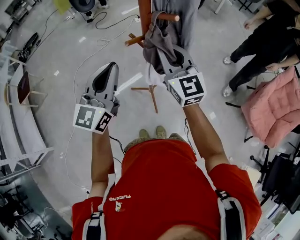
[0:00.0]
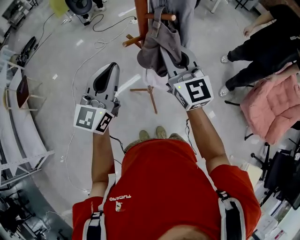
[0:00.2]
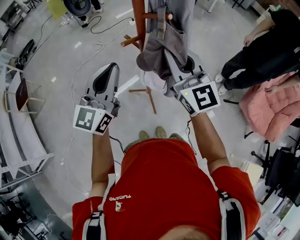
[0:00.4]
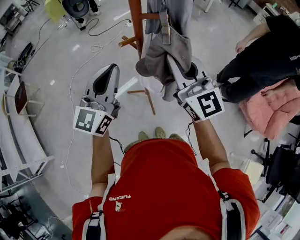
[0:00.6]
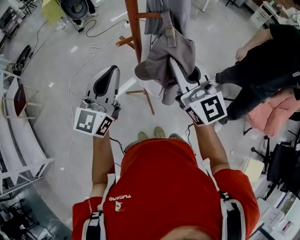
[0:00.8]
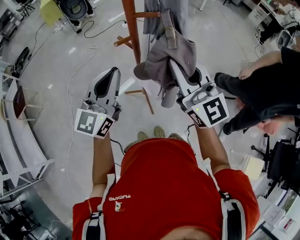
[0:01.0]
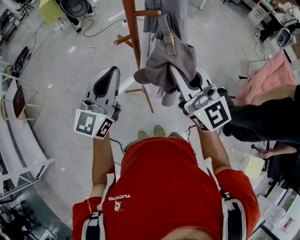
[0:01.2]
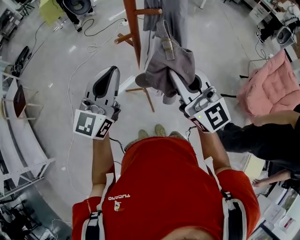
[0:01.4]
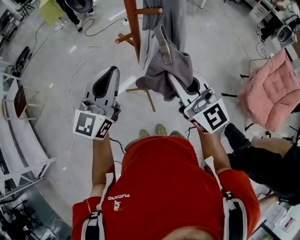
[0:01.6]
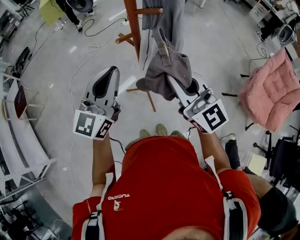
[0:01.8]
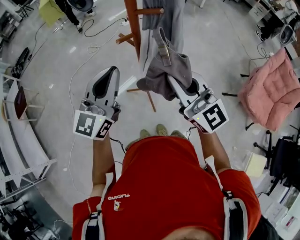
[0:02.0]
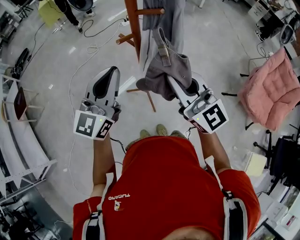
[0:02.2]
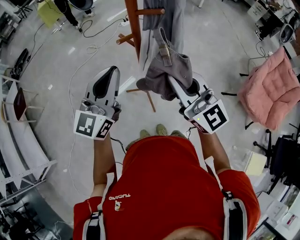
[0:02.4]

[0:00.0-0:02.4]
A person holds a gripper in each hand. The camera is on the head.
0:00.0 to 0:01.2: The right gripper is displaced backward and upward by some 15 cm.
0:01.2 to 0:02.4: There are only small adjustments of the grippers.

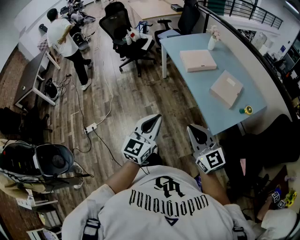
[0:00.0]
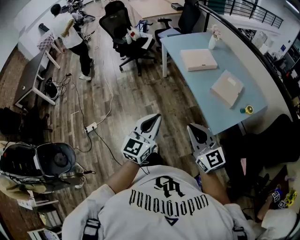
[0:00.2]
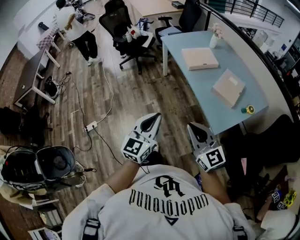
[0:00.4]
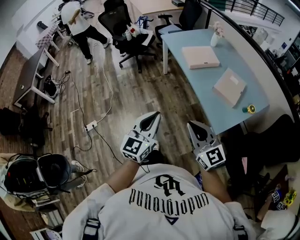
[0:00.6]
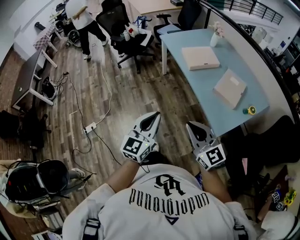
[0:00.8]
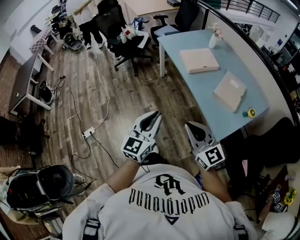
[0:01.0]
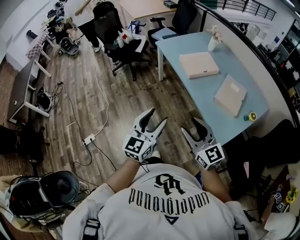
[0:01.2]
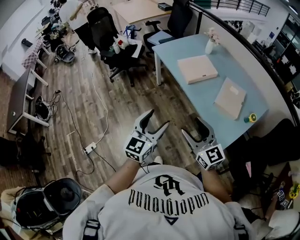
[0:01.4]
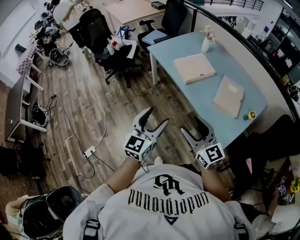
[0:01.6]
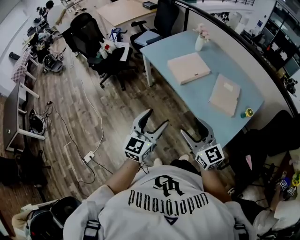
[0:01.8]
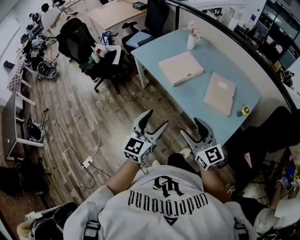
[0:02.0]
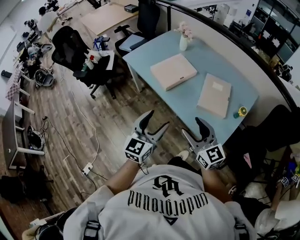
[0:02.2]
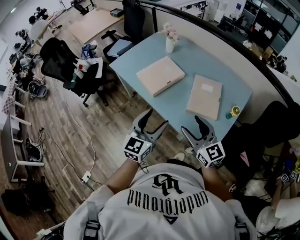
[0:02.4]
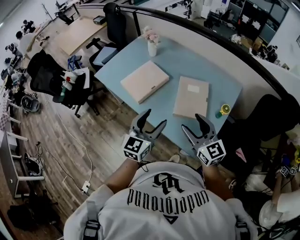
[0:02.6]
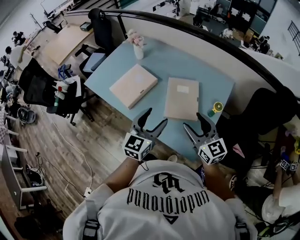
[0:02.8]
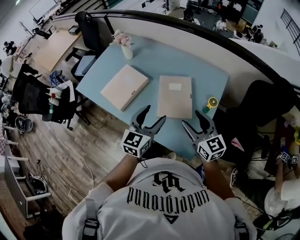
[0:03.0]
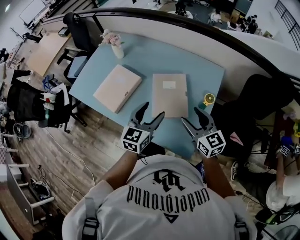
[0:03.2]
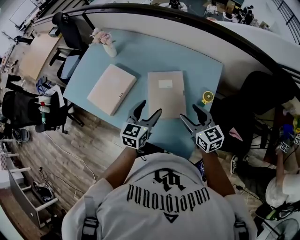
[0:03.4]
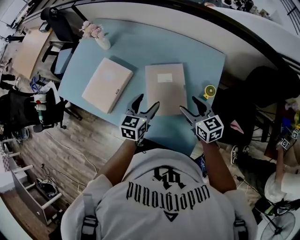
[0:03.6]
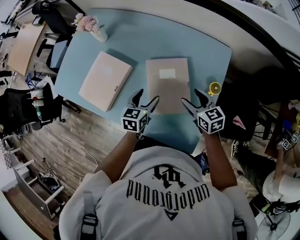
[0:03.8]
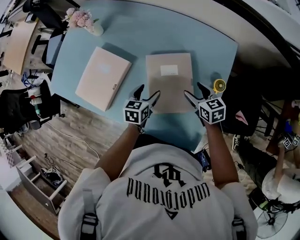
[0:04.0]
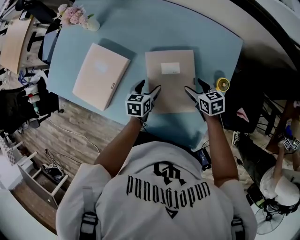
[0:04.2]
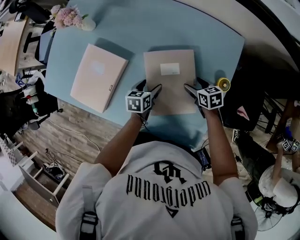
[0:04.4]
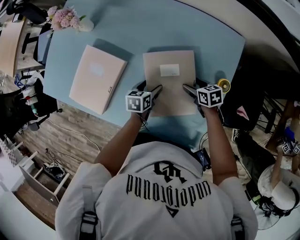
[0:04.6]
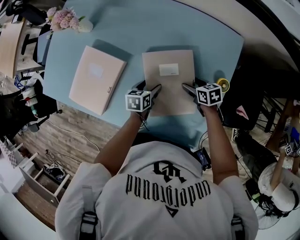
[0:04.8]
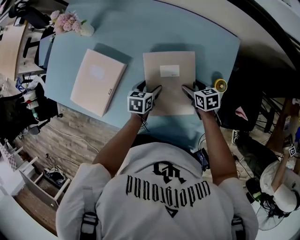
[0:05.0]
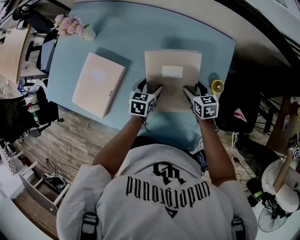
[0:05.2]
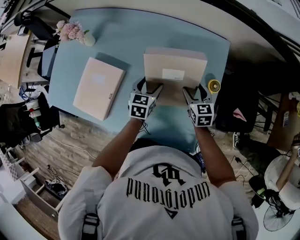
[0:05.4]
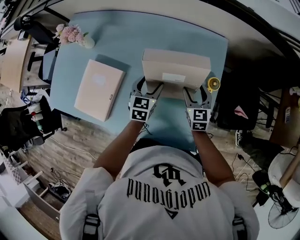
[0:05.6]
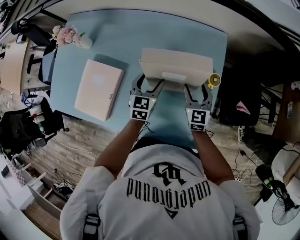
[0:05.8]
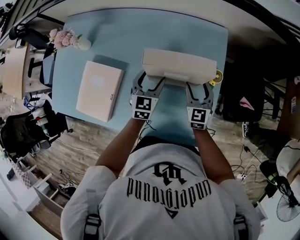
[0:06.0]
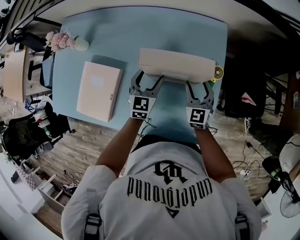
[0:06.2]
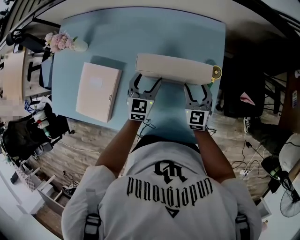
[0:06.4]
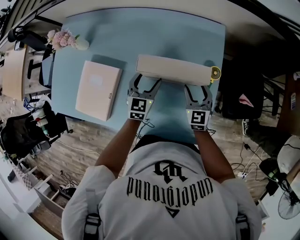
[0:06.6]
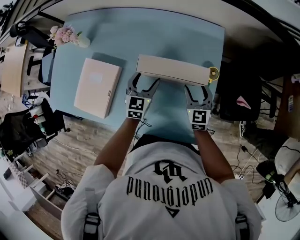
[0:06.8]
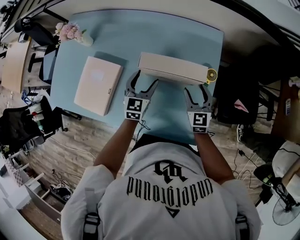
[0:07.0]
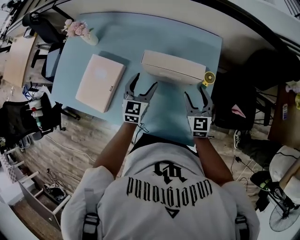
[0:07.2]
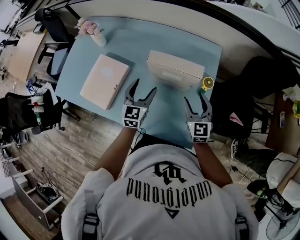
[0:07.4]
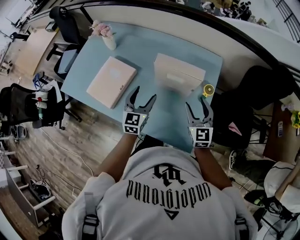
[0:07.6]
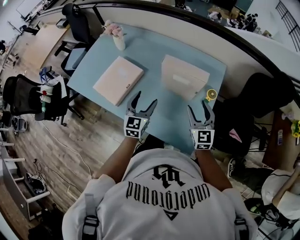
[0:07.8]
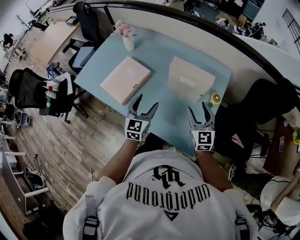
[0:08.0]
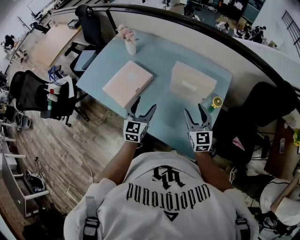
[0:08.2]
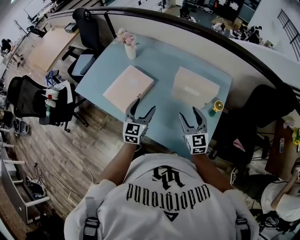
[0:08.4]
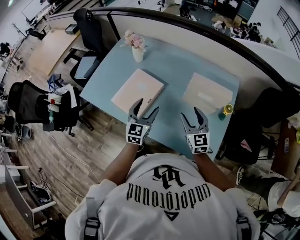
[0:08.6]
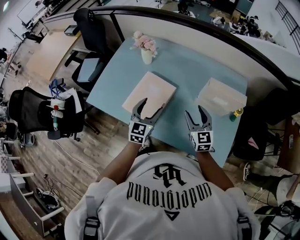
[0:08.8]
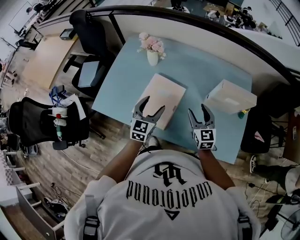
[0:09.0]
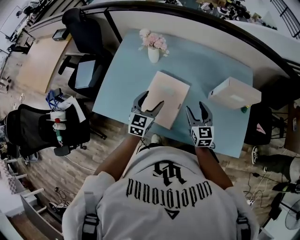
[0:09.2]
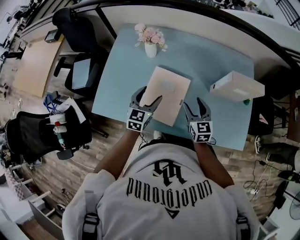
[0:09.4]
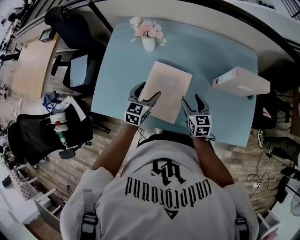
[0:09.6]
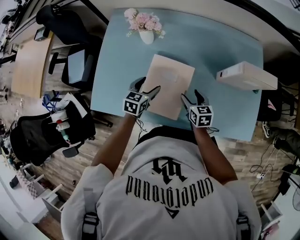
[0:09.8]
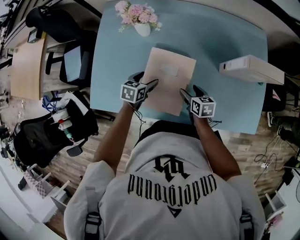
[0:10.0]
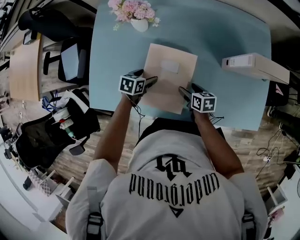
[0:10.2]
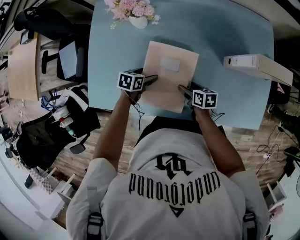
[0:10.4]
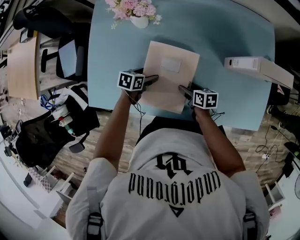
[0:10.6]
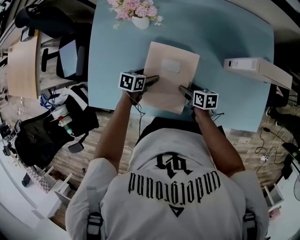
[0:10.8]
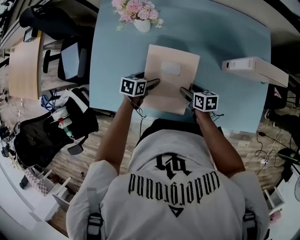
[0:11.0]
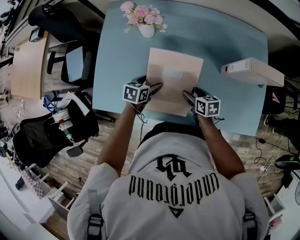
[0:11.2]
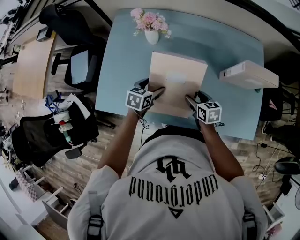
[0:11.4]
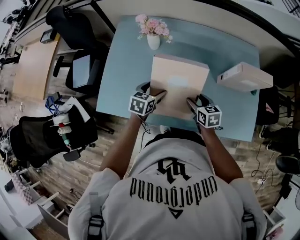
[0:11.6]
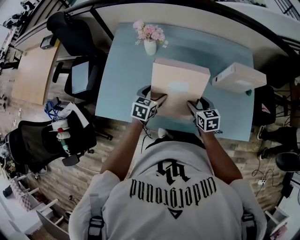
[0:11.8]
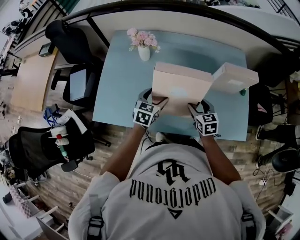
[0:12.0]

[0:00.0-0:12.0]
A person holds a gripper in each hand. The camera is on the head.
0:00.0 to 0:01.6: Both grippers move forward, approximately 25 cm. The left gripper opens up; the right gripper opens.
0:01.6 to 0:03.0: The pair of grippers is taken about 40 cm. The left gripper changes its angle by some 30 degrees. Meanwhile the right gripper rotates approximately 30 degrees.
0:03.0 to 0:04.4: The grippers both shift downward and forward by approximately 40 cm. The left gripper points its fingers about 40 degrees further downward. The right gripper angles its fingers downward, by approximately 40 degrees.
0:04.4 to 0:06.0: The right gripper heads upward, covering about 10 cm, and turns by some 50 degrees; the left gripper travels upward and to the right by roughly 15 cm, and turns by approximately 40 degrees.
0:06.0 to 0:07.6: The left gripper is displaced backward and upward by roughly 20 cm. The right gripper travels upward and backward by approximately 20 cm.
0:07.6 to 0:09.0: The two grippers go roughly 30 cm to the left.
0:09.0 to 0:10.4: The right gripper goes about 30 cm downward and to the left, and turns by roughly 60 degrees, while the left gripper travels downward by roughly 25 cm, and angles its fingers downward, by some 40 degrees.
0:10.4 to 0:12.0: The two grippers go approximately 20 cm upward. The left gripper swivels approximately 40 degrees. The right gripper turns by some 40 degrees.

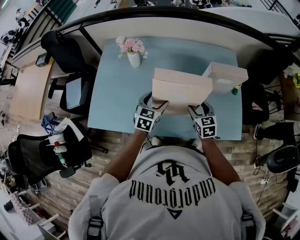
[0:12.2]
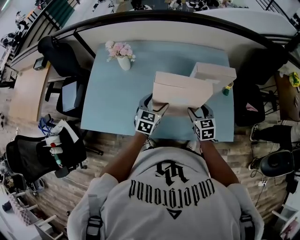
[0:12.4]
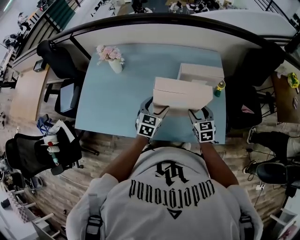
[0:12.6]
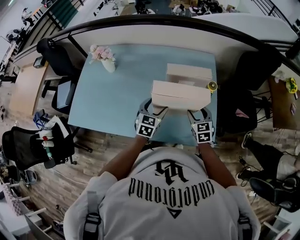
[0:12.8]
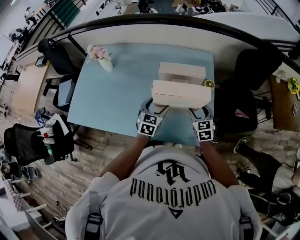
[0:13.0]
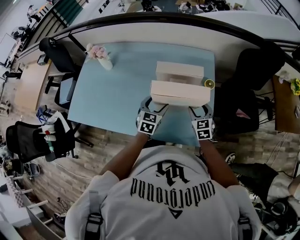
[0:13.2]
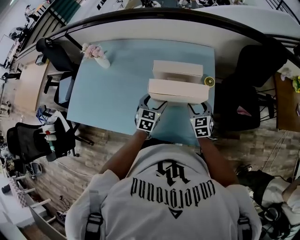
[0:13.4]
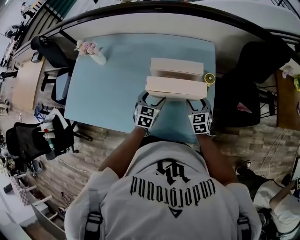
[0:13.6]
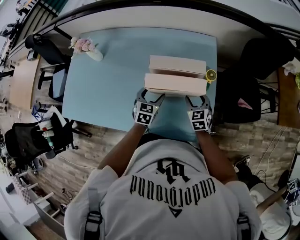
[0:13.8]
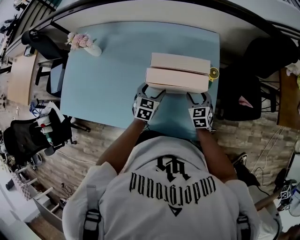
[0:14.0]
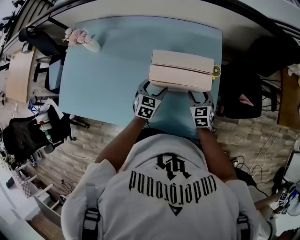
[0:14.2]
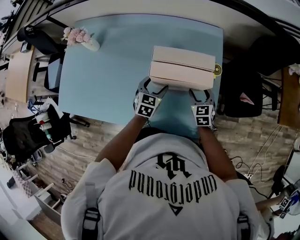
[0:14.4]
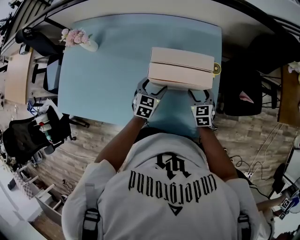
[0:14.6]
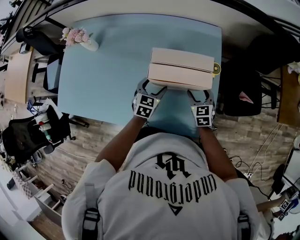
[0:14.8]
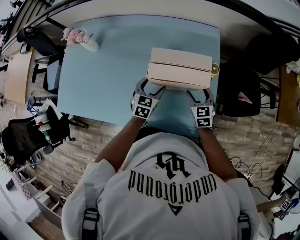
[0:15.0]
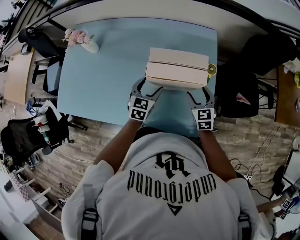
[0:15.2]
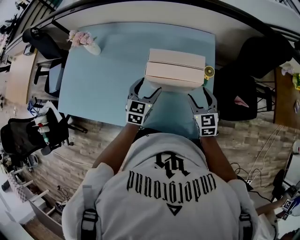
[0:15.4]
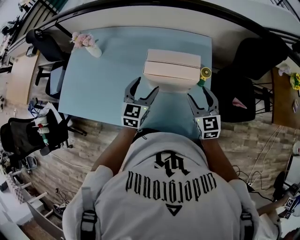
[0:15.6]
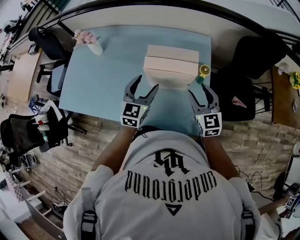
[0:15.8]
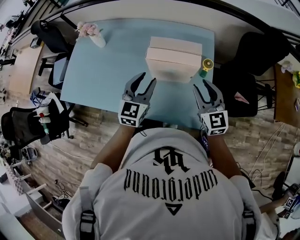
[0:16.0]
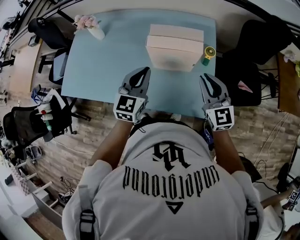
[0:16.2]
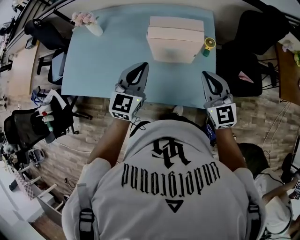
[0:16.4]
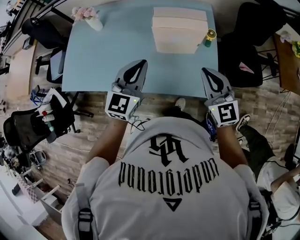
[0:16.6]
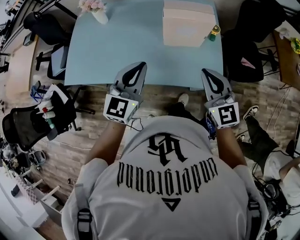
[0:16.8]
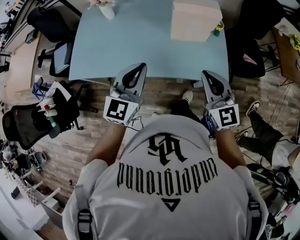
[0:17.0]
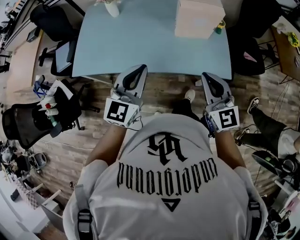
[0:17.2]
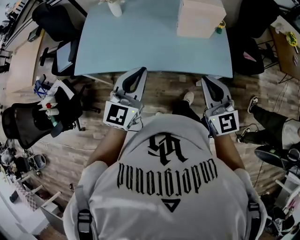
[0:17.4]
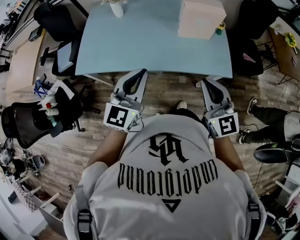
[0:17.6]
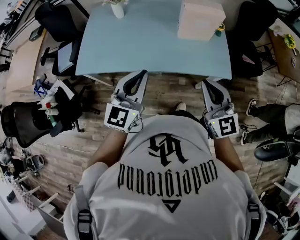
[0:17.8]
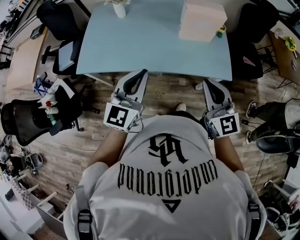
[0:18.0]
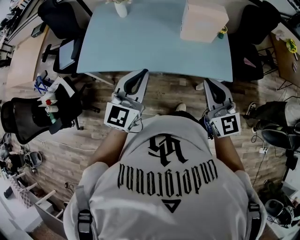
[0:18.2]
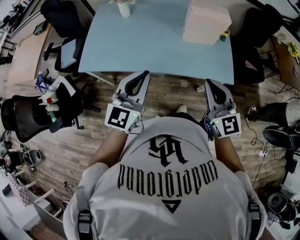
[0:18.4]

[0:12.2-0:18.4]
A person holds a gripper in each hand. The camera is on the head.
0:12.2 to 0:13.8: The grippers both shift to the right by approximately 30 cm.
0:13.8 to 0:15.4: The two grippers go about 5 cm upward.
0:15.4 to 0:16.8: The two grippers go some 30 cm backward, upward and to the left. The left gripper rotates roughly 20 degrees, and closes its fingers; the right gripper closes up.
0:16.8 to 0:18.4: The grippers both shift backward and to the left by approximately 20 cm.

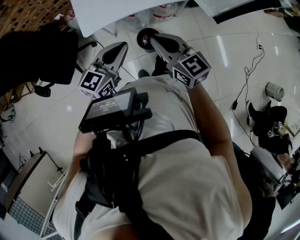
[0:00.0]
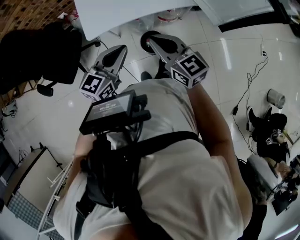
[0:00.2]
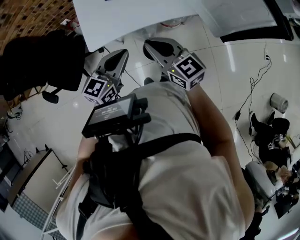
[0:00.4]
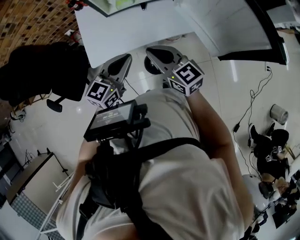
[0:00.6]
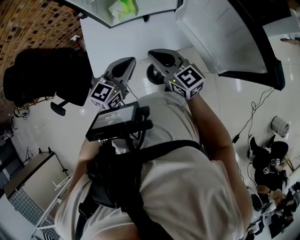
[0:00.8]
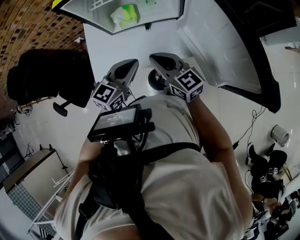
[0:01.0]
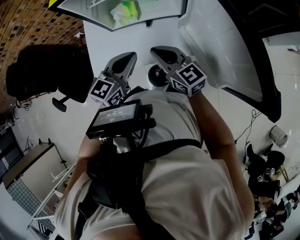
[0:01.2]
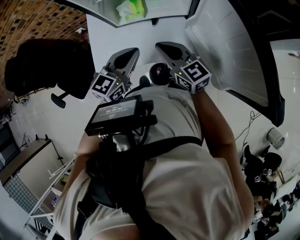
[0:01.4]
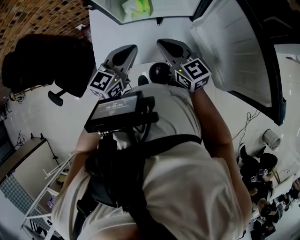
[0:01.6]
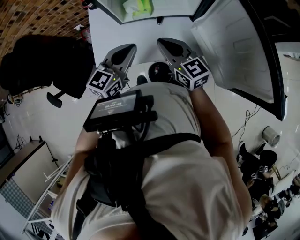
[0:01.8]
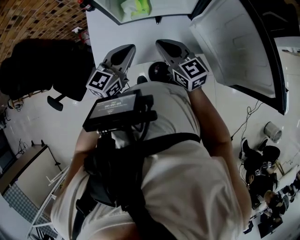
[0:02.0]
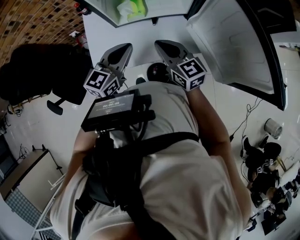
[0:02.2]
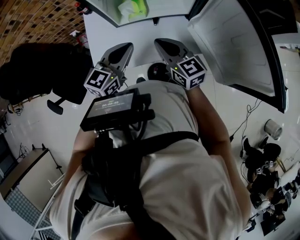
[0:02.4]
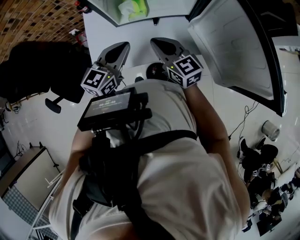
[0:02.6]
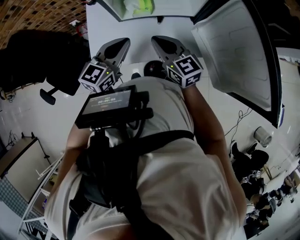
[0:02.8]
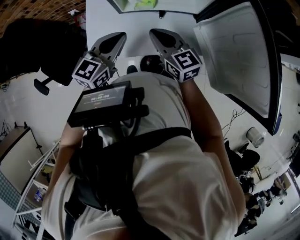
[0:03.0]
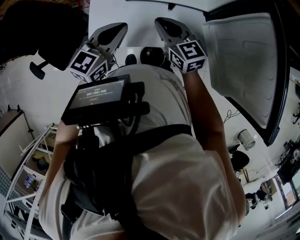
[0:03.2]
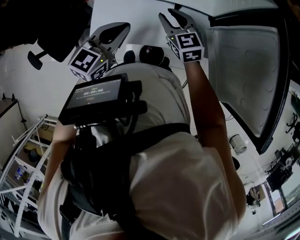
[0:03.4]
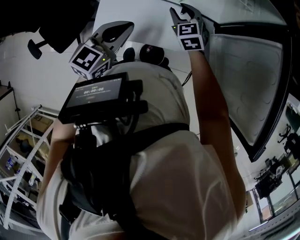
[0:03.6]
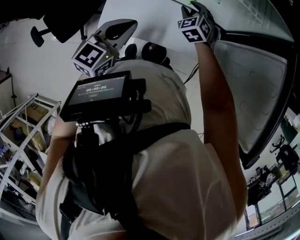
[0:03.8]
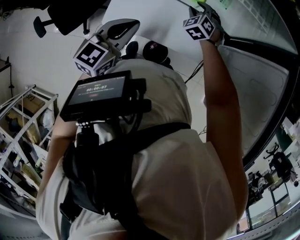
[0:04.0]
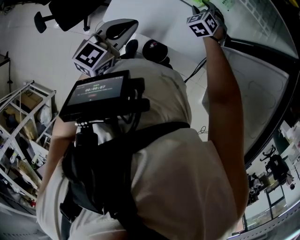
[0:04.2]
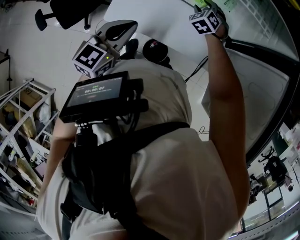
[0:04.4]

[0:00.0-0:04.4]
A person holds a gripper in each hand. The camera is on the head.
0:00.0 to 0:01.4: The left gripper reaches roughly 5 cm to the right, then returns.
0:01.4 to 0:03.0: The grippers move only a little.
0:03.0 to 0:04.4: The left gripper turns by approximately 20 degrees, while the right gripper heads forward and downward, covering roughly 25 cm, rolls counterclockwise, seen from behind, by roughly 50 degrees, and opens.
